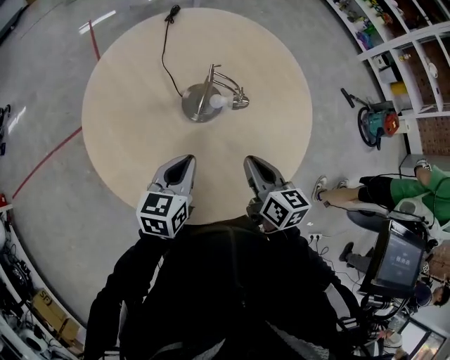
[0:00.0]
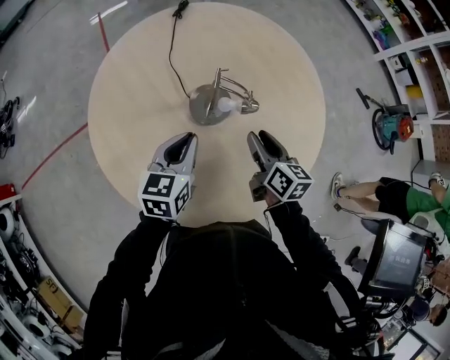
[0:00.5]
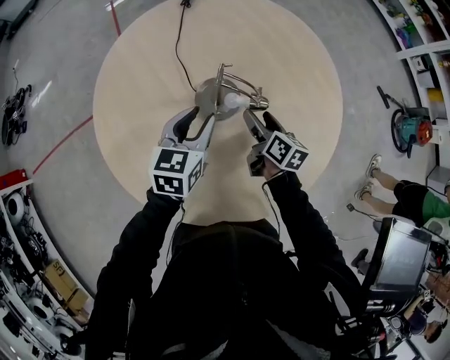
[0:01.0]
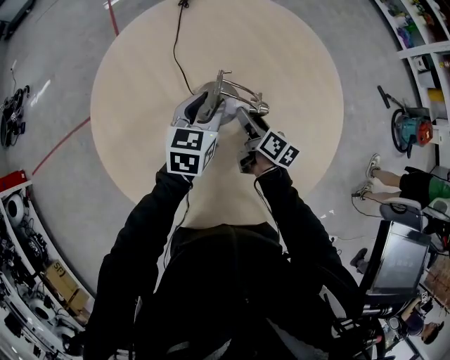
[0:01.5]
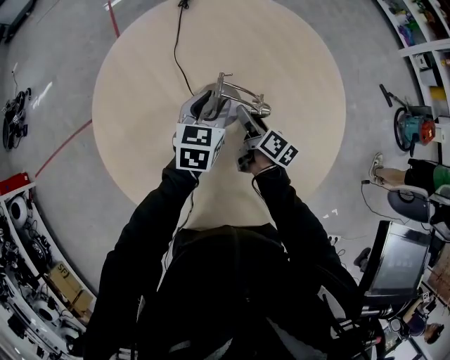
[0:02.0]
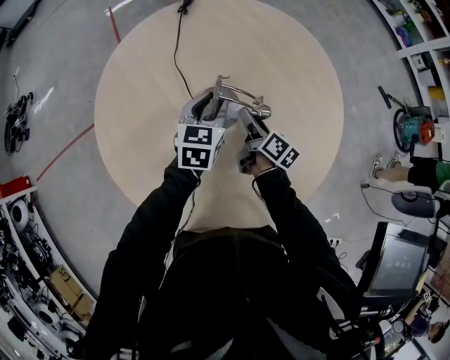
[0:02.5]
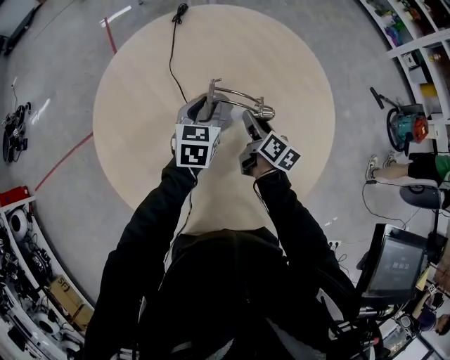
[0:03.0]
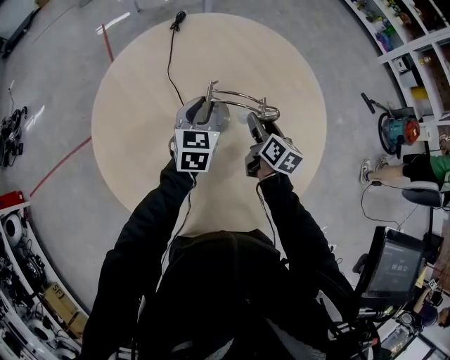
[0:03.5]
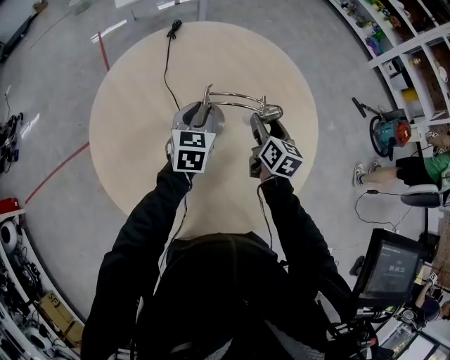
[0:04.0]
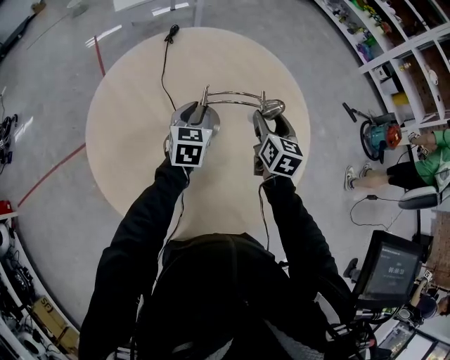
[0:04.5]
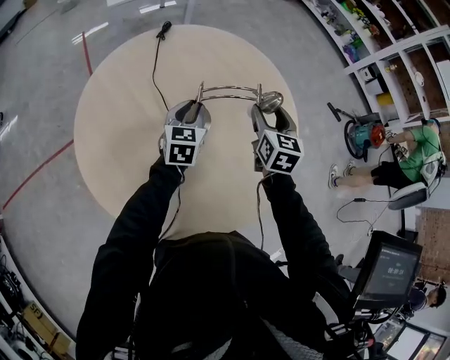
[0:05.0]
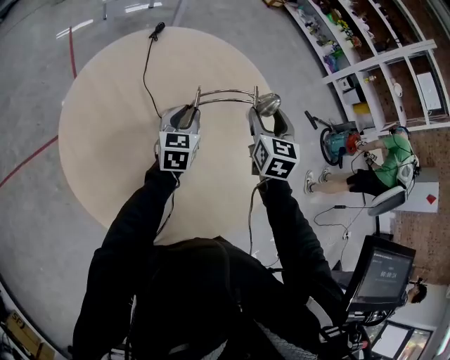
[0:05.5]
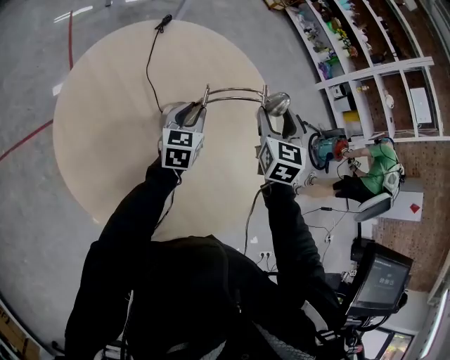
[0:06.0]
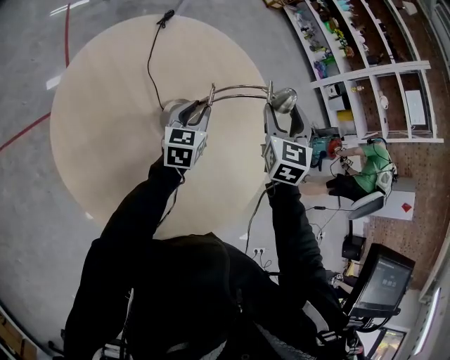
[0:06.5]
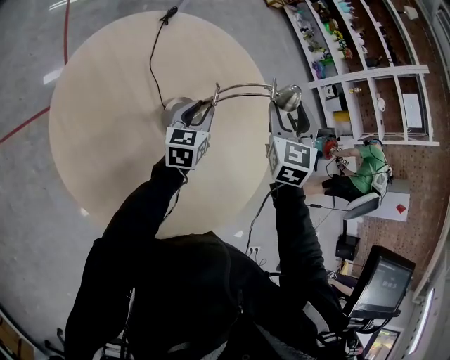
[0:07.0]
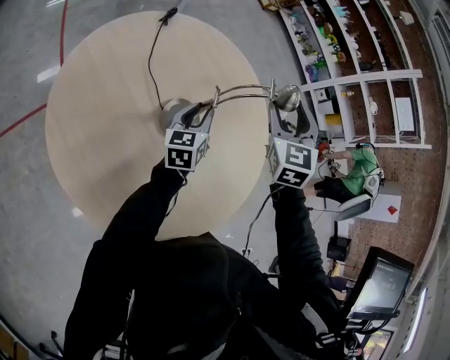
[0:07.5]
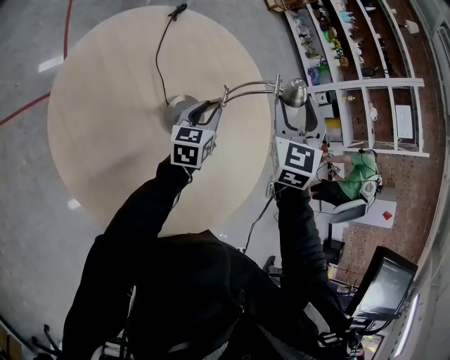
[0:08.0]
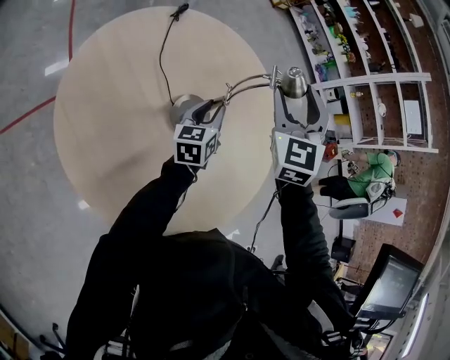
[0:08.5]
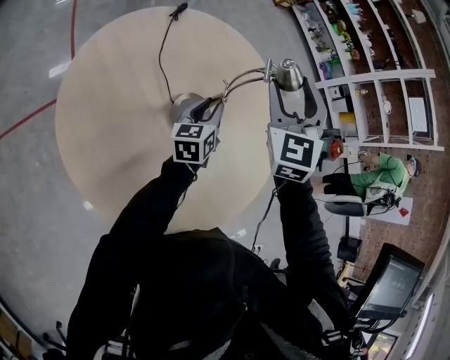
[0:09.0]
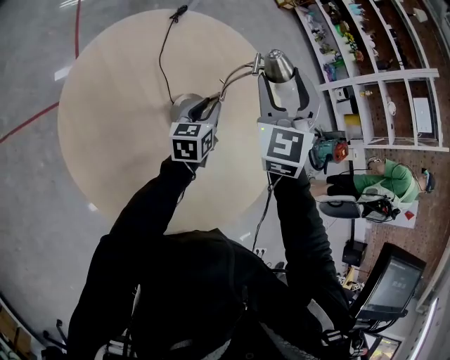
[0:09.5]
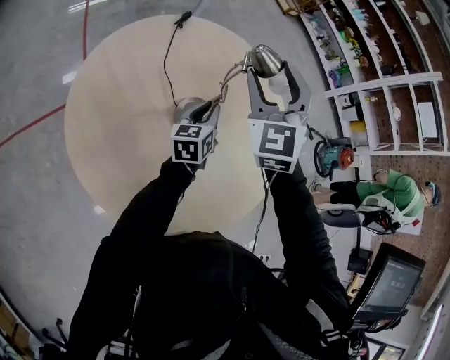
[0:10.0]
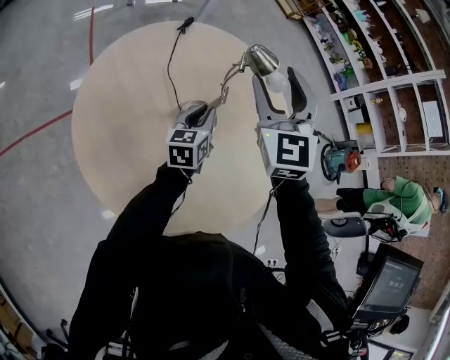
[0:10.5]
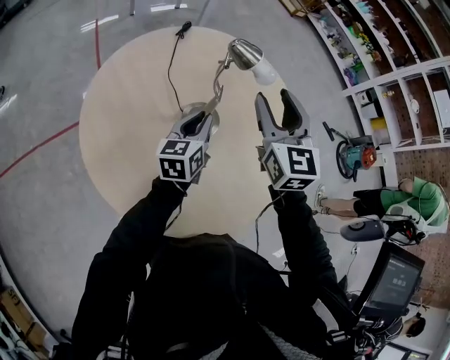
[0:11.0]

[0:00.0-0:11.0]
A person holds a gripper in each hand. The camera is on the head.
0:00.0 to 0:02.0: The left gripper goes roughly 20 cm forward, and opens, while the right gripper travels forward and downward by about 25 cm, swivels roughly 40 degrees, and opens up.
0:02.0 to 0:03.5: The right gripper shifts about 10 cm upward and to the right, and turns by some 30 degrees.
0:03.5 to 0:05.5: The right gripper goes about 15 cm upward, and twists about 50 degrees counterclockwise, seen from behind.
0:05.5 to 0:07.5: The left gripper changes its angle by roughly 20 degrees. The right gripper is displaced upward and to the left by approximately 10 cm, and changes its angle by approximately 30 degrees.
0:07.5 to 0:09.0: The right gripper travels to the left by approximately 5 cm.
0:09.0 to 0:11.0: The left gripper shifts by some 5 cm, while the right gripper shifts by approximately 5 cm, and rotates approximately 30 degrees.

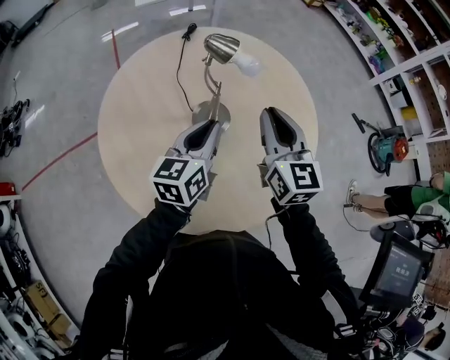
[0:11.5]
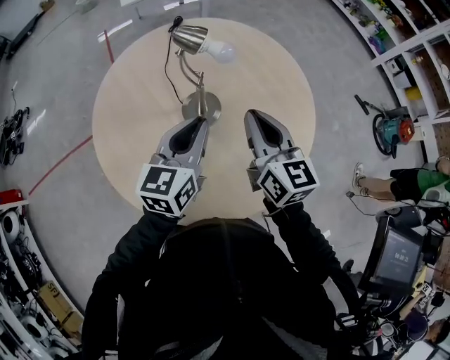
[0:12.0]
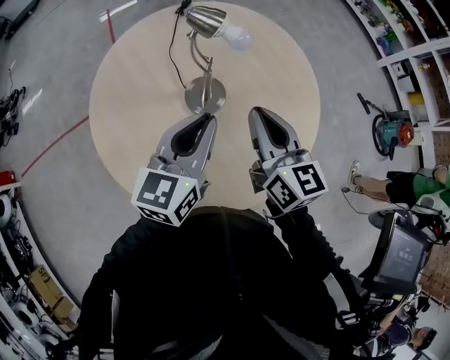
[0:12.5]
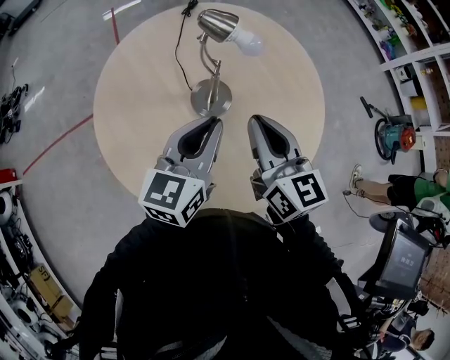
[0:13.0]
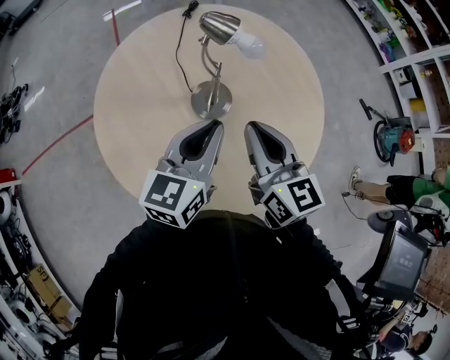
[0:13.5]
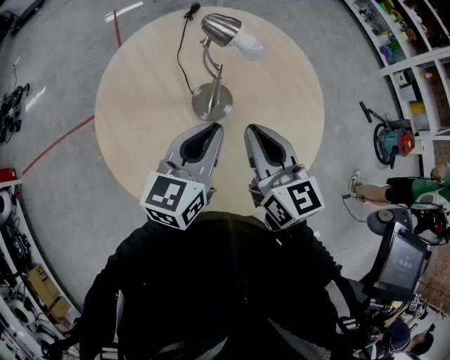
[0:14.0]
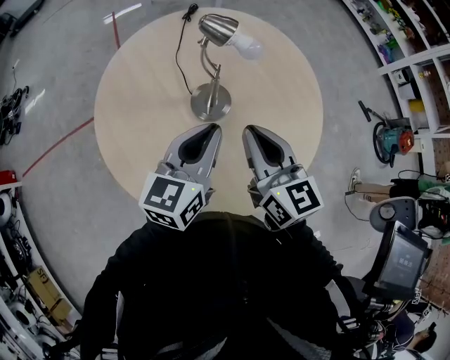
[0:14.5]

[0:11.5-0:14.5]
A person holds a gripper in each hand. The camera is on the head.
0:11.5 to 0:13.0: The right gripper travels backward by approximately 5 cm. Meanwhile the left gripper shifts by some 5 cm.
0:13.0 to 0:14.5: The grippers stay close to where they were, moving slightly.

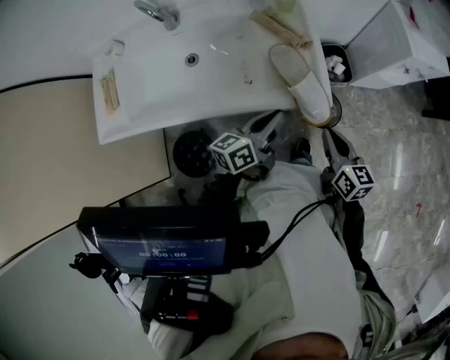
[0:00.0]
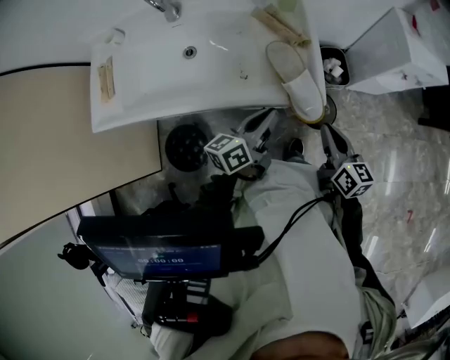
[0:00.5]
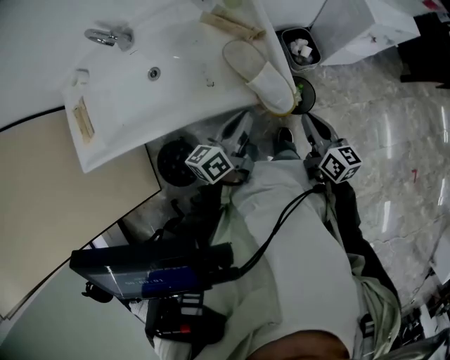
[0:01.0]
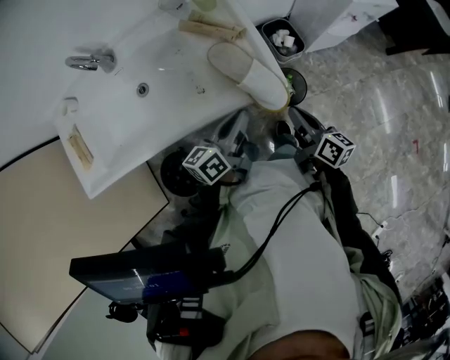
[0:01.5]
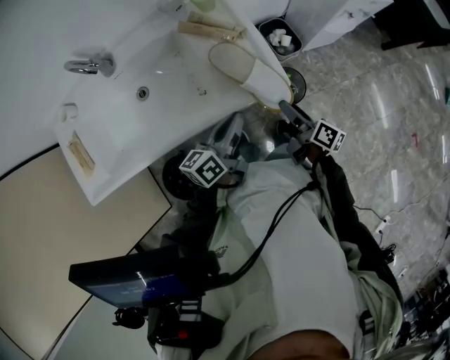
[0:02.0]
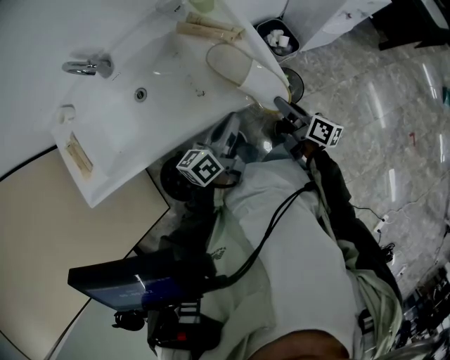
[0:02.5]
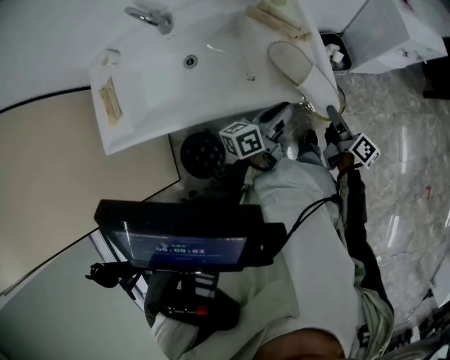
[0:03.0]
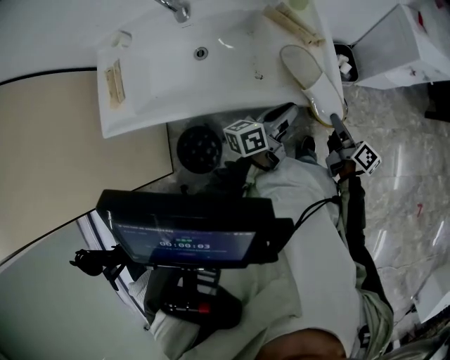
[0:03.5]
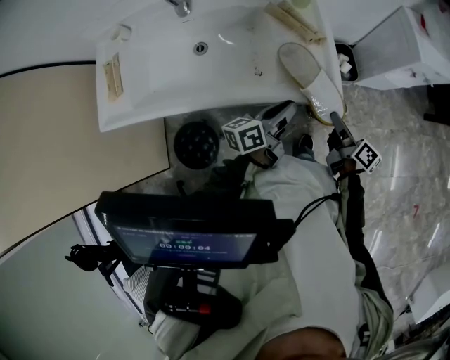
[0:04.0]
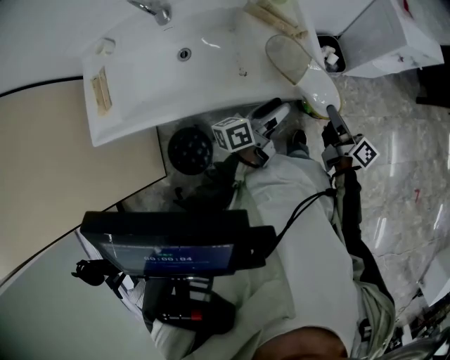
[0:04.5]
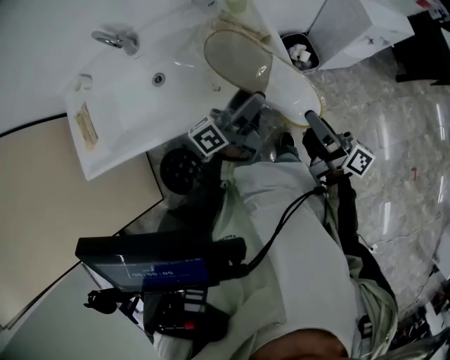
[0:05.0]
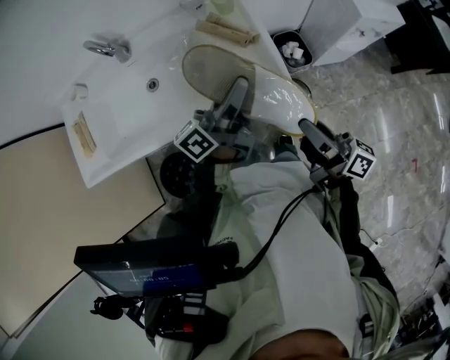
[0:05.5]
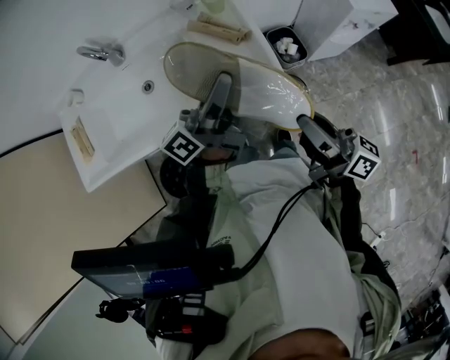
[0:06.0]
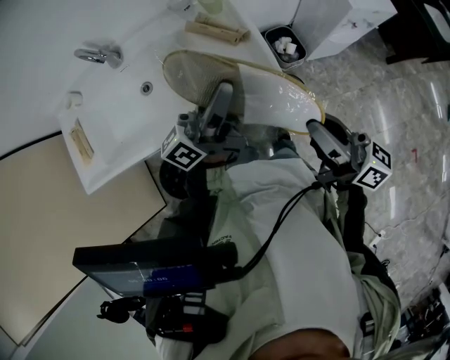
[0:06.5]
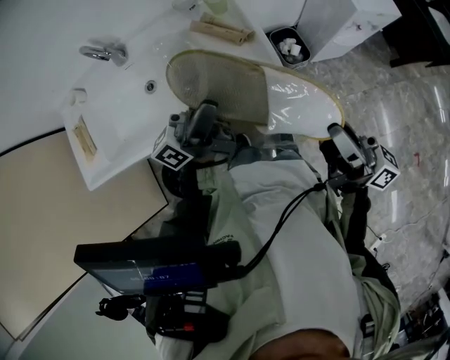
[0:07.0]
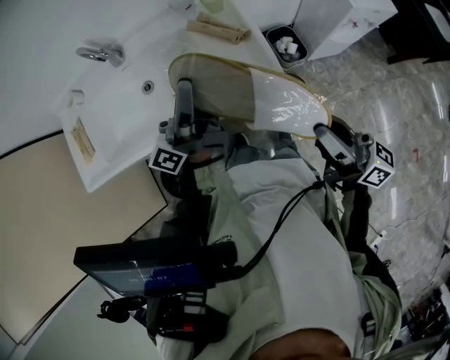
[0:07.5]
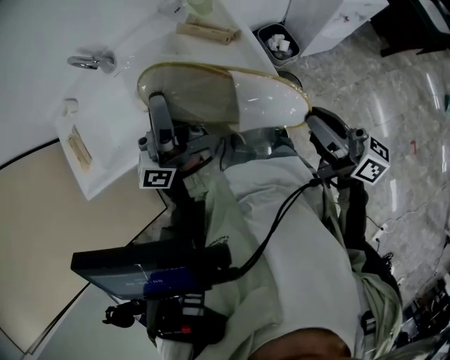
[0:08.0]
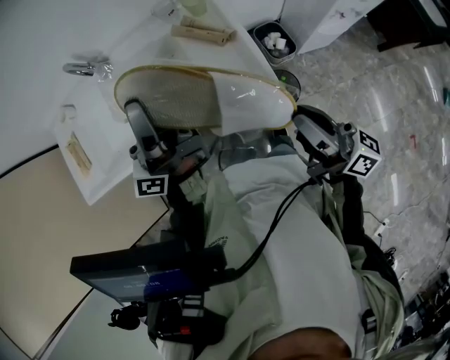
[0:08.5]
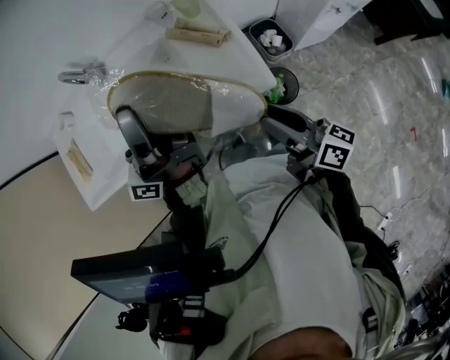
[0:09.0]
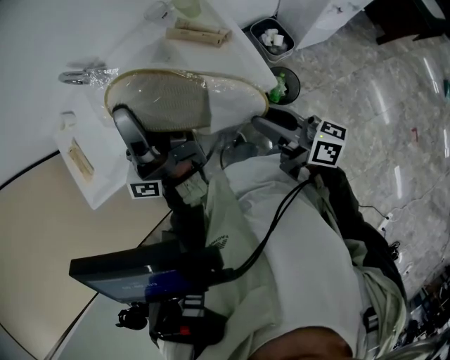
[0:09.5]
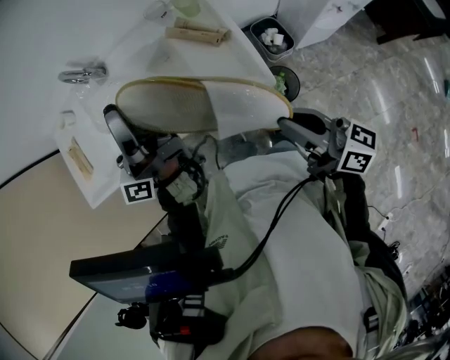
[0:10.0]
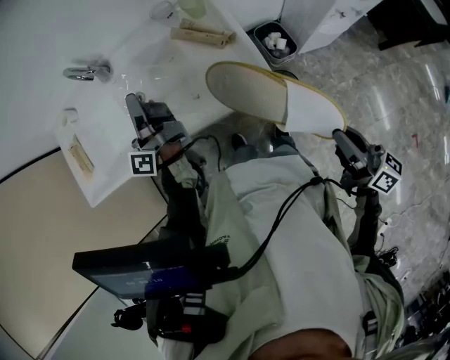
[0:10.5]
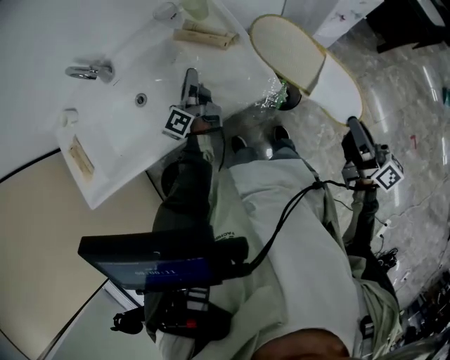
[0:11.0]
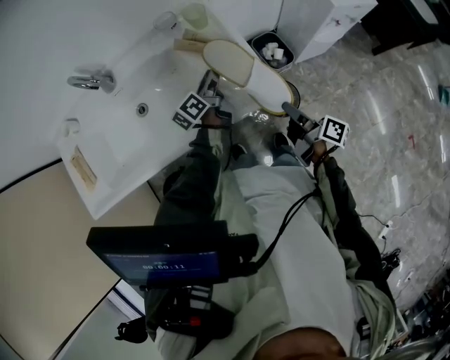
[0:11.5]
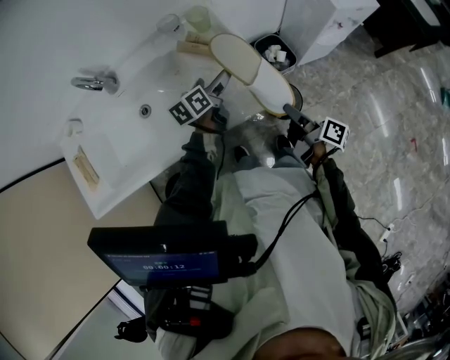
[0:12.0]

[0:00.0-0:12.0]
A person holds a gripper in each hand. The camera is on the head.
0:00.0 to 0:02.0: The right gripper travels downward by about 10 cm, rolls clockwise, seen from behind, by some 40 degrees, and opens up.
0:02.0 to 0:04.0: The right gripper closes.
0:04.0 to 0:06.0: Both grippers move upward, approximately 20 cm. The right gripper points its fingers roughly 30 degrees further upward. Meanwhile the left gripper angles its fingers upward, by some 30 degrees, and opens, then closes again.
0:06.0 to 0:08.0: The left gripper goes some 10 cm to the left and upward, swivels roughly 30 degrees, and opens and closes again.
0:08.0 to 0:10.0: The right gripper opens, then closes once more. Meanwhile the left gripper shifts by roughly 5 cm.
0:10.0 to 0:12.0: The right gripper goes approximately 20 cm downward, and changes its angle by roughly 50 degrees; the left gripper travels downward and to the right by about 35 cm, points its fingers about 60 degrees further downward, and opens its fingers.
